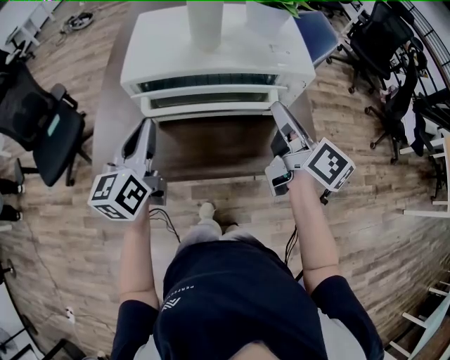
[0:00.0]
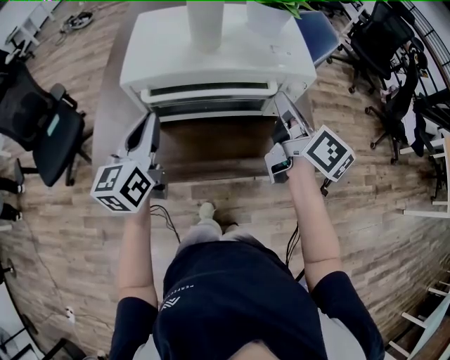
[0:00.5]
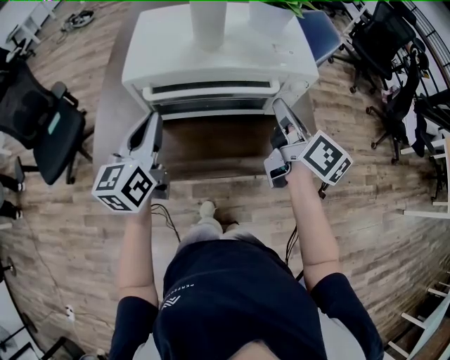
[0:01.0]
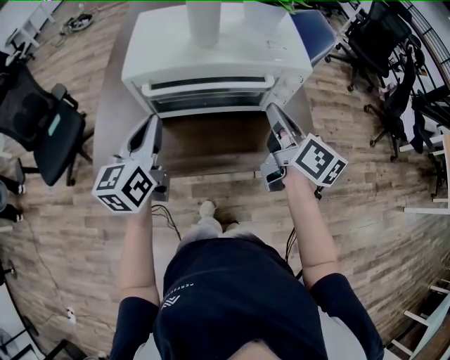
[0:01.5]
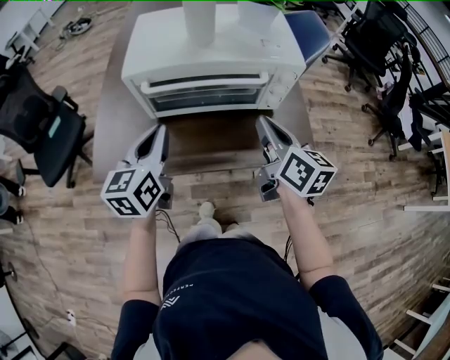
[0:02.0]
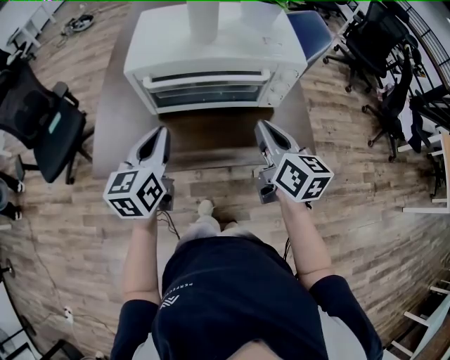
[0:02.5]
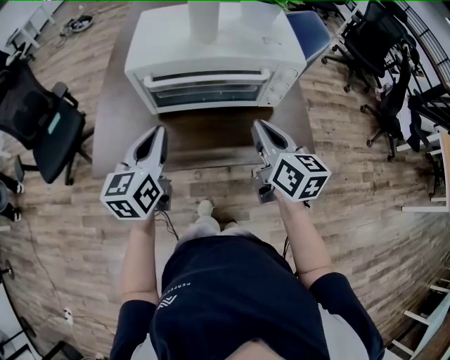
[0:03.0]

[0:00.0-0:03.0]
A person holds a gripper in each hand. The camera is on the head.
0:00.0 to 0:01.5: The right gripper closes up.
0:01.5 to 0:03.0: The right gripper goes roughly 5 cm backward.

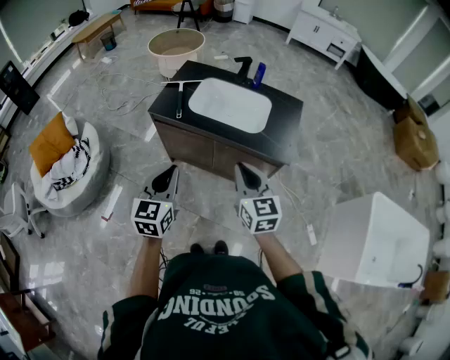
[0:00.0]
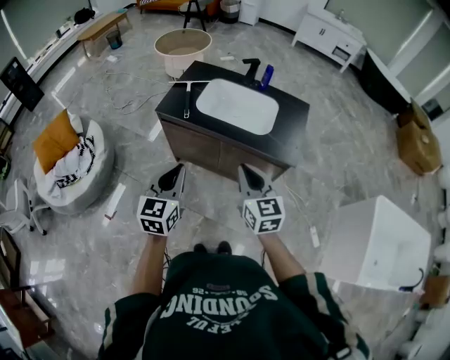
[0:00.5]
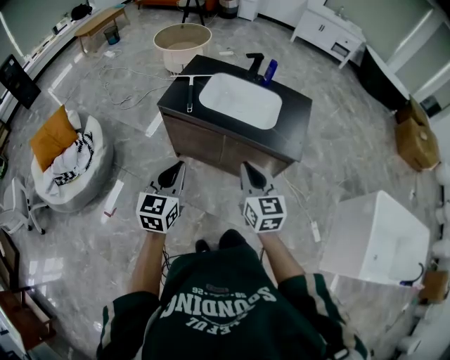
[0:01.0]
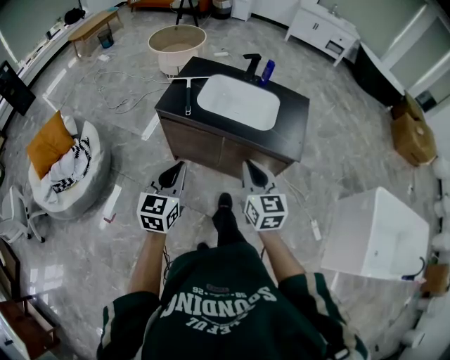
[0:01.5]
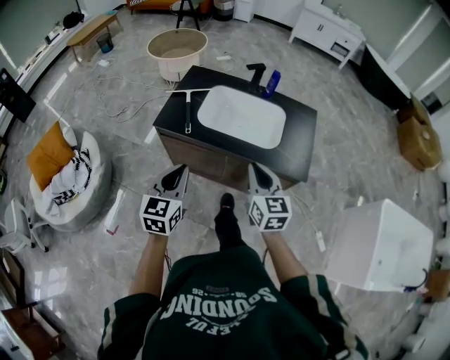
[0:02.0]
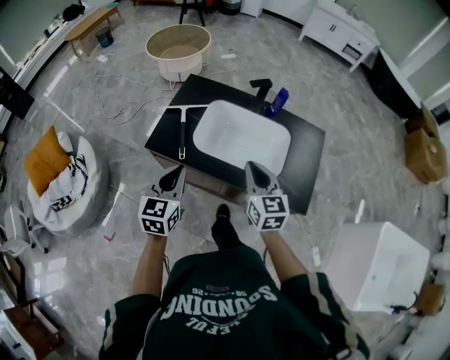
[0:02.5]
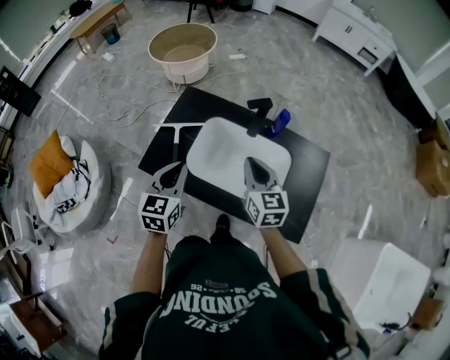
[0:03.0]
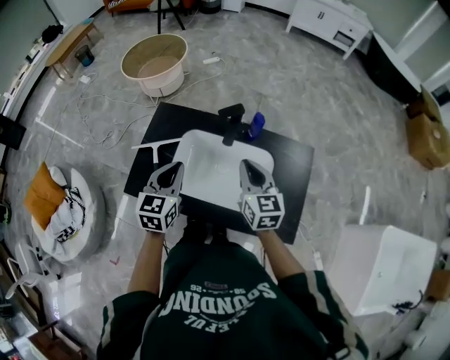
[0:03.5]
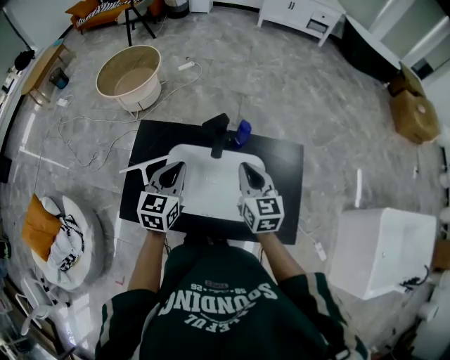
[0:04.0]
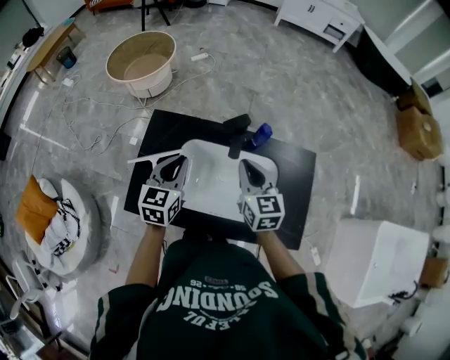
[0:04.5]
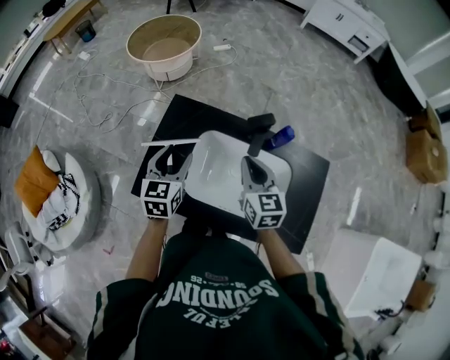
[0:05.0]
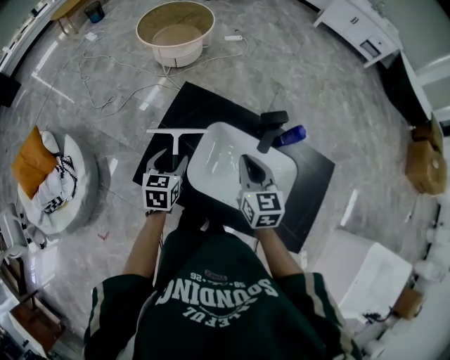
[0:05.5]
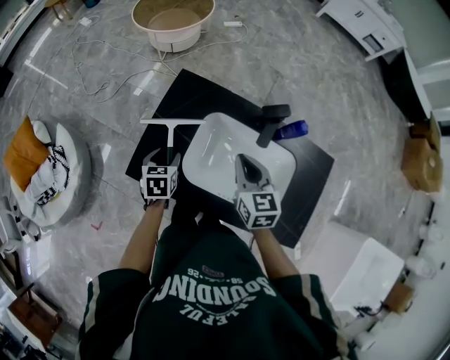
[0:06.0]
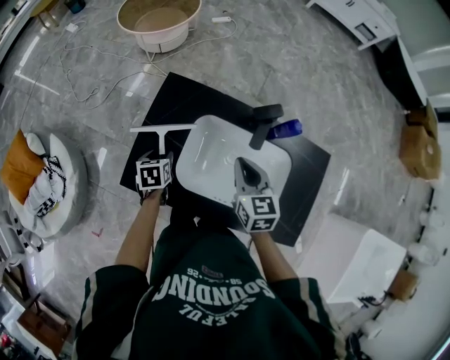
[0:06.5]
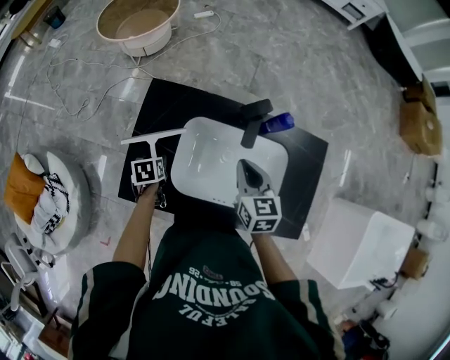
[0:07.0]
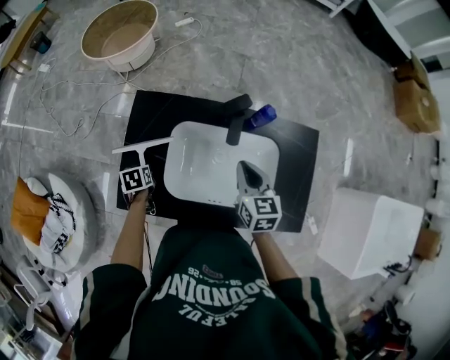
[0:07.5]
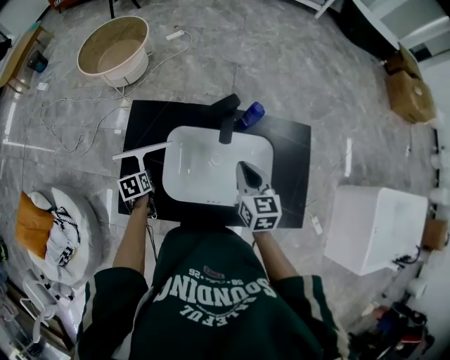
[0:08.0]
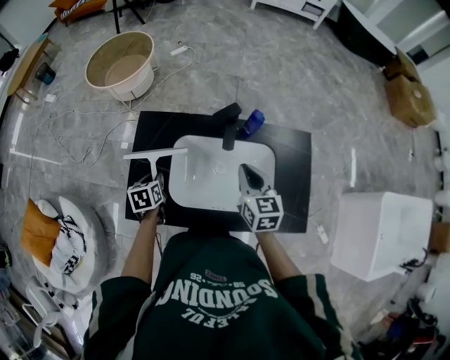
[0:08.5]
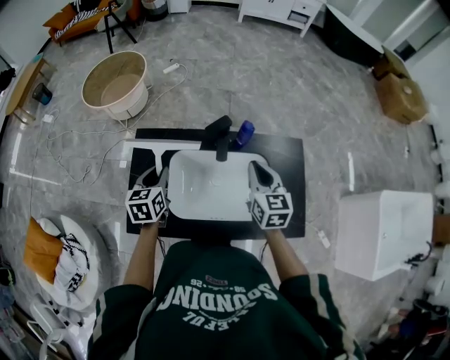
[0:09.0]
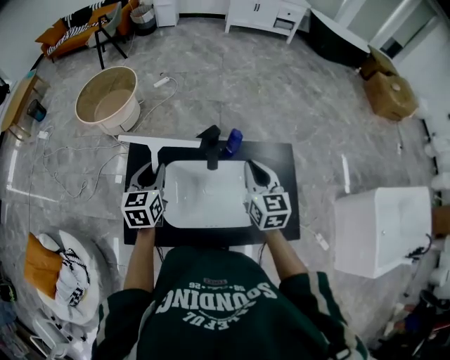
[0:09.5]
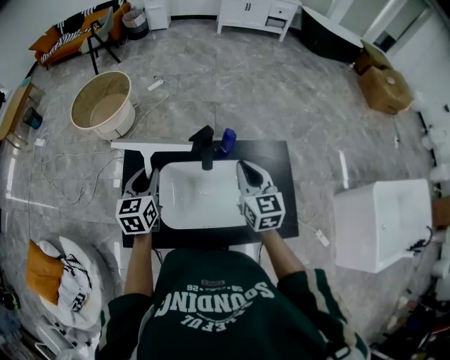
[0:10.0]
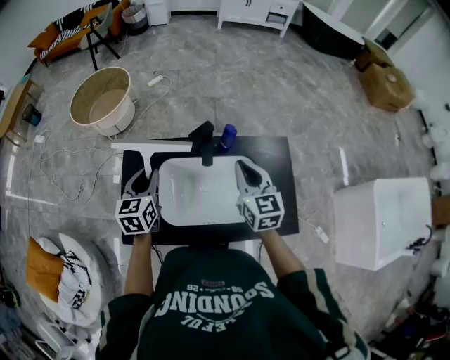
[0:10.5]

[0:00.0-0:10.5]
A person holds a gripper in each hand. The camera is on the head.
0:00.0 to 0:02.0: The two grippers go about 10 cm forward.
0:02.0 to 0:04.0: The grippers both shift forward by roughly 40 cm.
0:04.0 to 0:06.5: The right gripper travels to the left and downward by some 15 cm. Meanwhile the left gripper travels downward and to the left by about 30 cm, tips its fingers downward by approximately 40 degrees, and opens.
0:06.5 to 0:08.5: The left gripper ends up approximately 5 cm from where it was, and closes up, while the right gripper moves to the right, some 10 cm.
0:08.5 to 0:10.5: The left gripper is displaced upward and to the right by about 20 cm, and turns by about 30 degrees. Meanwhile the right gripper is displaced upward by roughly 10 cm.

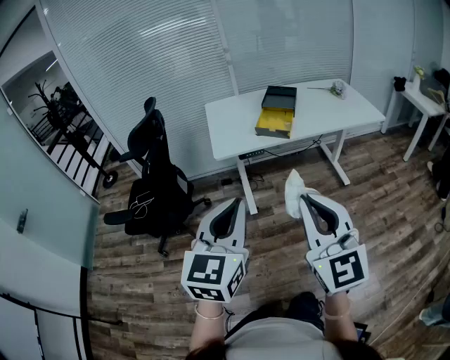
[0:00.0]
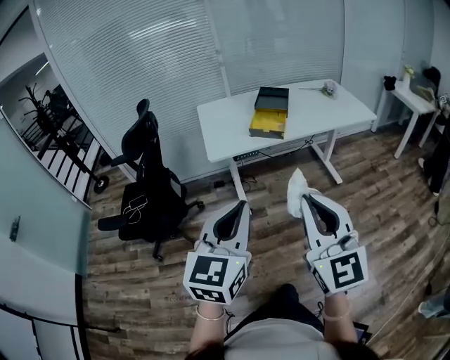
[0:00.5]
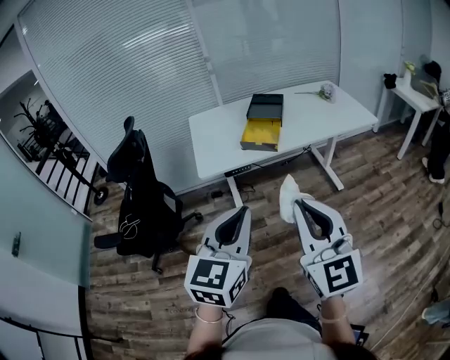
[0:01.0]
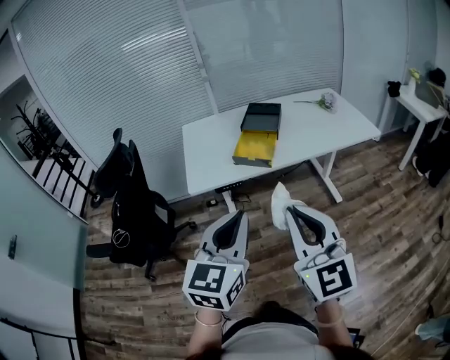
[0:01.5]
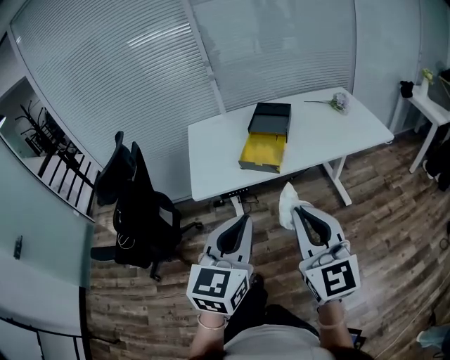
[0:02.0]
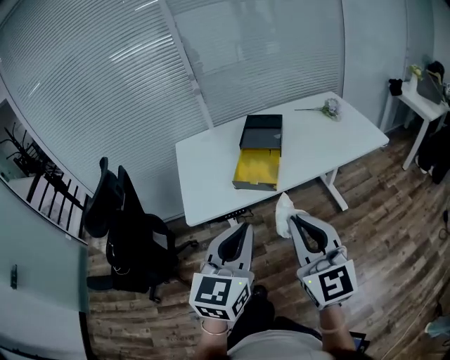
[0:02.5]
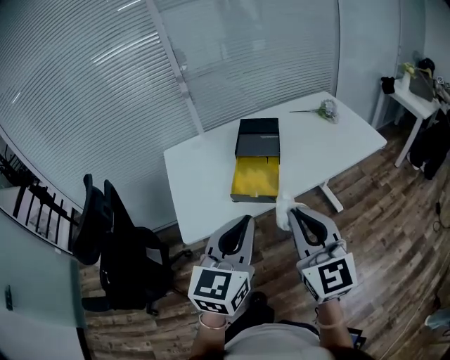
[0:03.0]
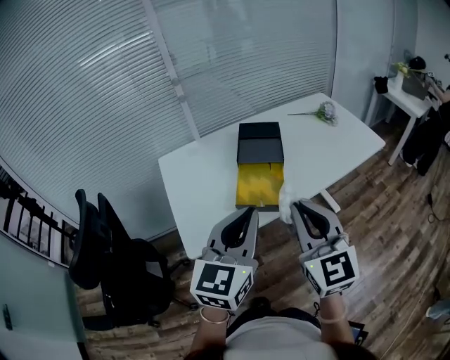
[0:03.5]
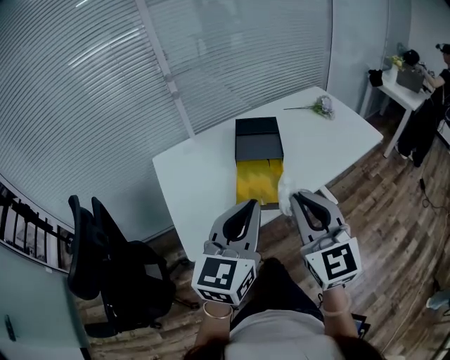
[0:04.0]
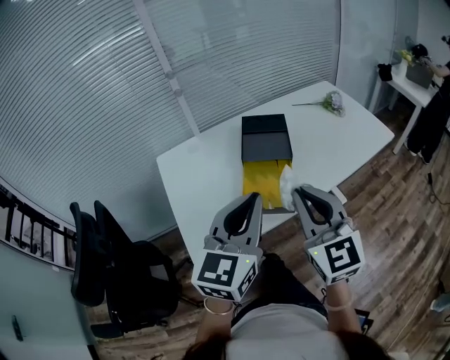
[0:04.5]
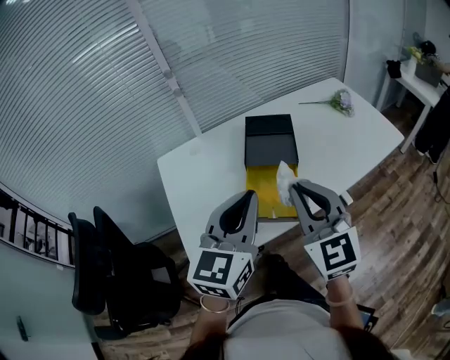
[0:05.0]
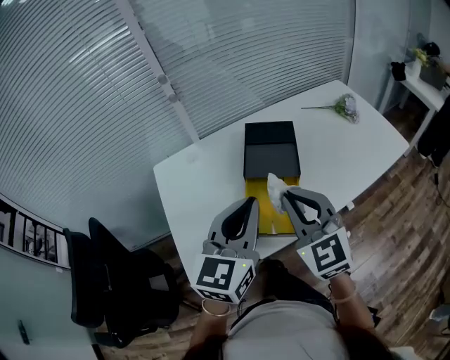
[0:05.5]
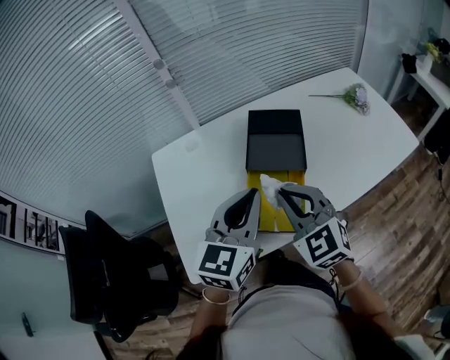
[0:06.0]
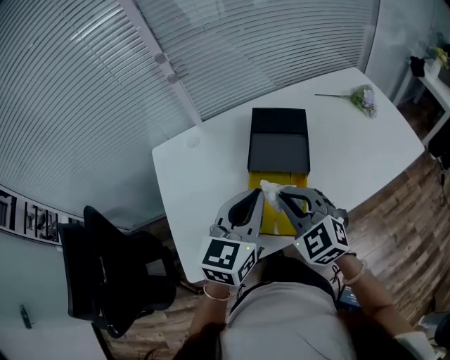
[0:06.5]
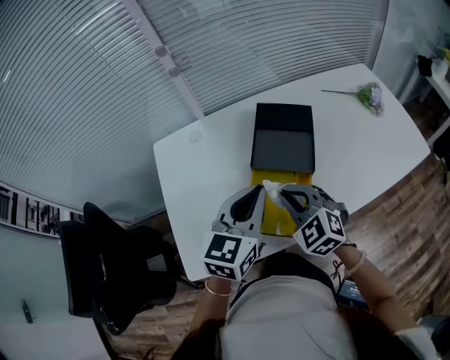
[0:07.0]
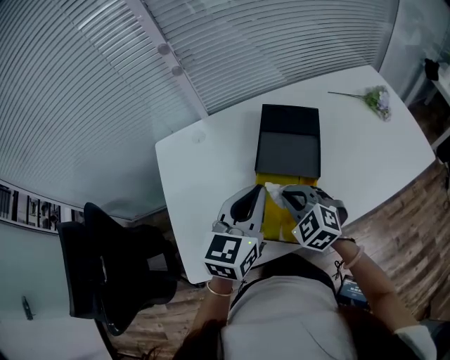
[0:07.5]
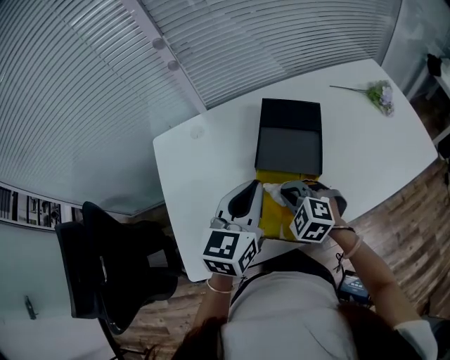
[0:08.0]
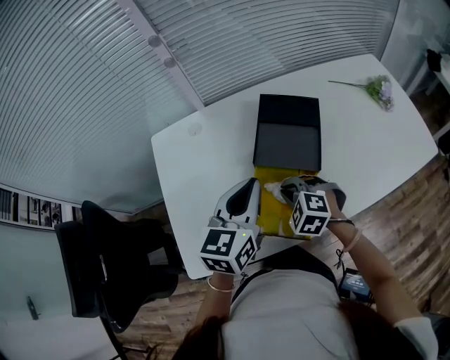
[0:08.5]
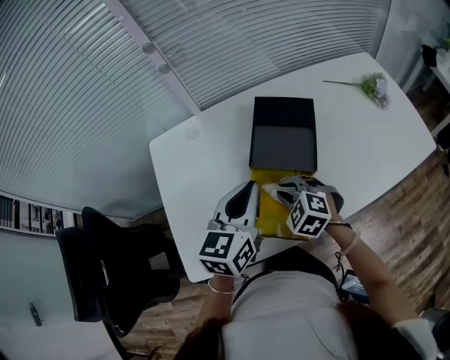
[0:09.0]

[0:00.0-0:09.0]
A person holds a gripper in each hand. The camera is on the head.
0:00.0 to 0:02.0: The left gripper shifts approximately 25 cm forward and to the right. The right gripper travels forward by approximately 25 cm.
0:02.0 to 0:04.5: The grippers both shift forward by roughly 30 cm.
0:04.5 to 0:07.0: The left gripper travels forward and downward by about 20 cm. Meanwhile the right gripper goes about 25 cm downward and forward, and points its fingers some 30 degrees further downward.
0:07.0 to 0:09.0: The right gripper goes some 10 cm downward.

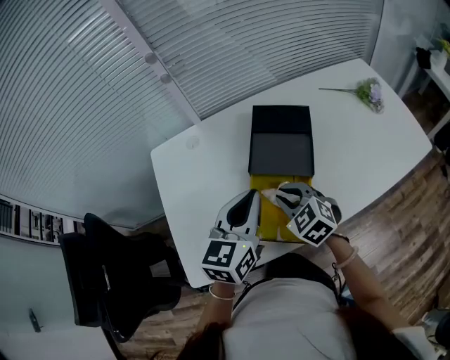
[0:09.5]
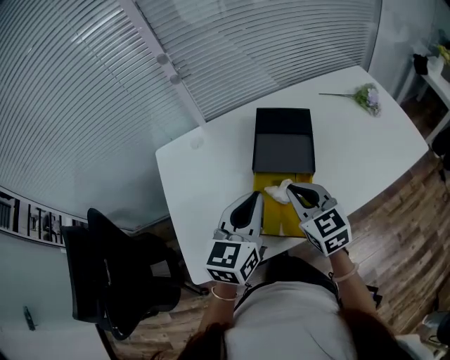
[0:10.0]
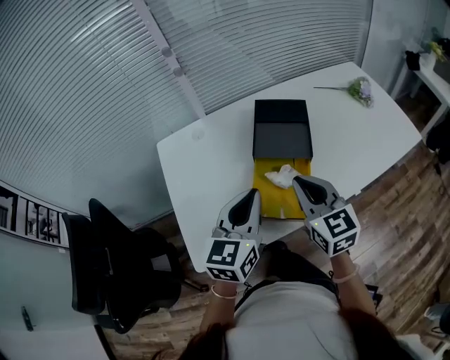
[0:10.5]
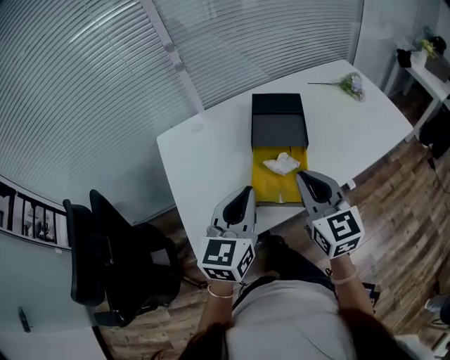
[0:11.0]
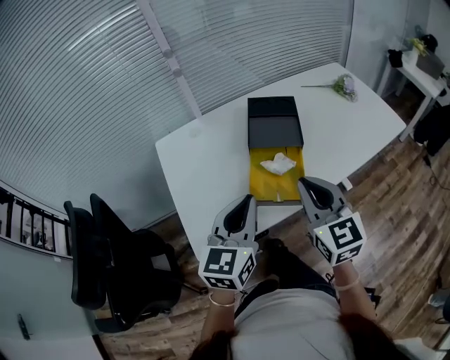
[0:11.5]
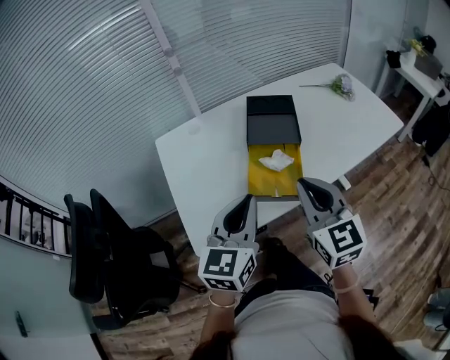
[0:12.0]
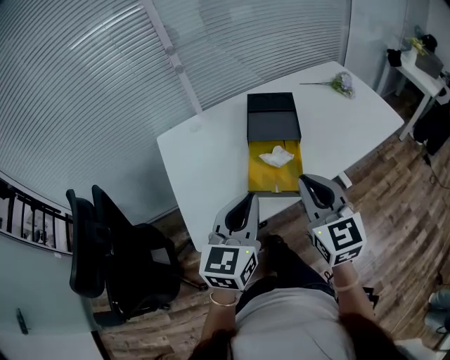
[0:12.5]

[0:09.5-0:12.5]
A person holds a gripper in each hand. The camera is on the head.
0:09.5 to 0:11.0: The right gripper travels upward and backward by roughly 20 cm, and tilts its fingers approximately 30 degrees upward, while the left gripper travels backward and to the left by about 15 cm.
0:11.0 to 0:12.5: The grippers both shift backward by some 5 cm.

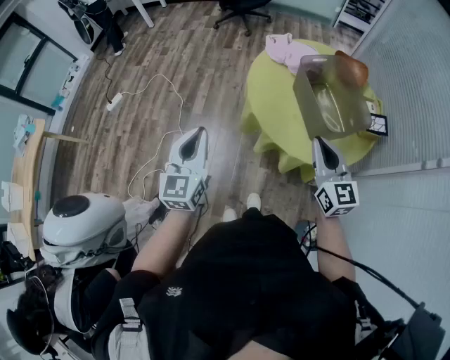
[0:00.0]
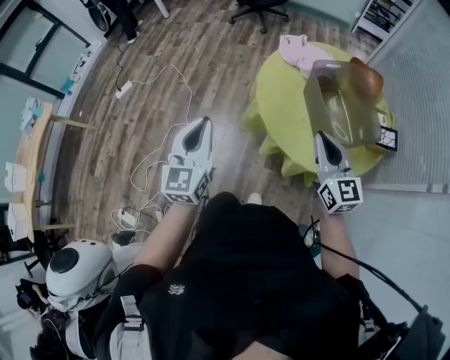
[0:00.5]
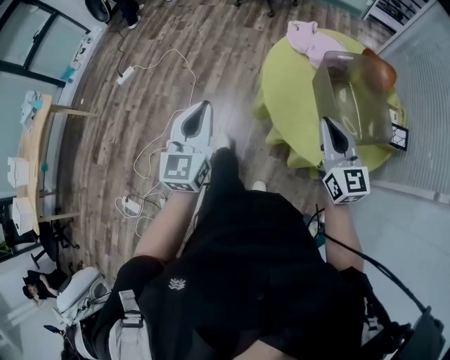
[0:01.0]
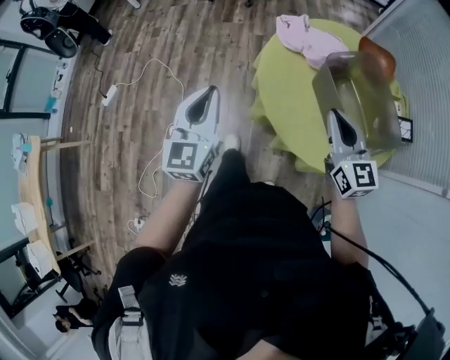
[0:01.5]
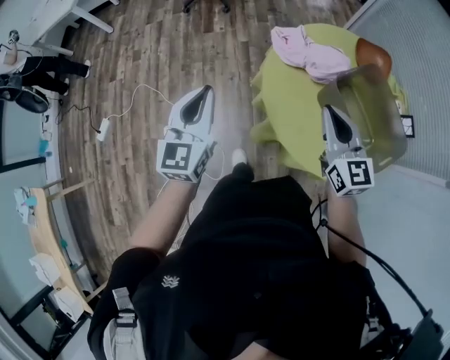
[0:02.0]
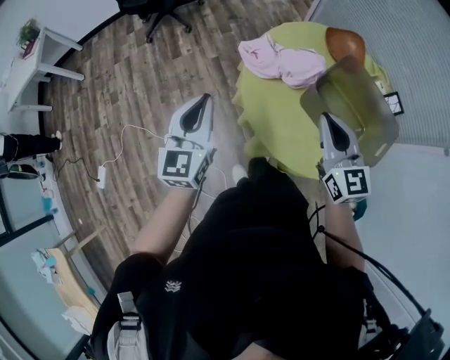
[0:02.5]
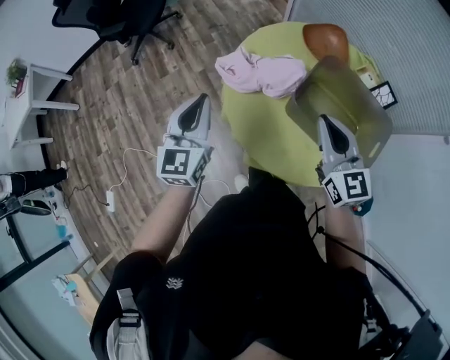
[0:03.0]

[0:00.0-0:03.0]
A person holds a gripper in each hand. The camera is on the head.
0:00.0 to 0:01.5: Both grippers travel together forward, some 25 cm.
0:01.5 to 0:03.0: The right gripper ends up roughly 15 cm from where it was, and changes its angle by some 30 degrees. Meanwhile the left gripper shifts by about 35 cm, and rotates approximately 30 degrees.
